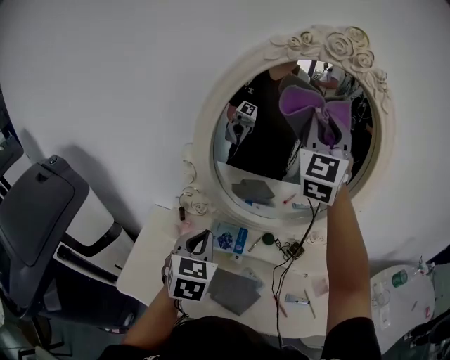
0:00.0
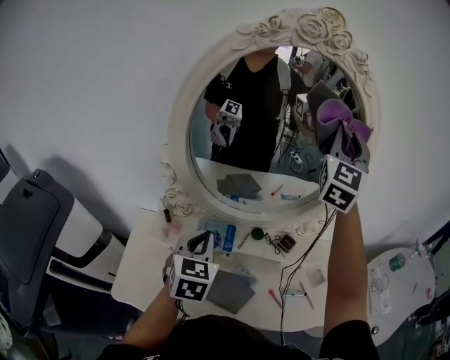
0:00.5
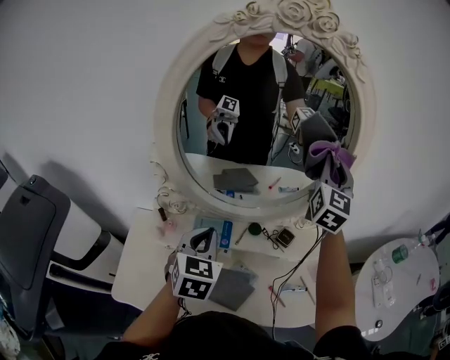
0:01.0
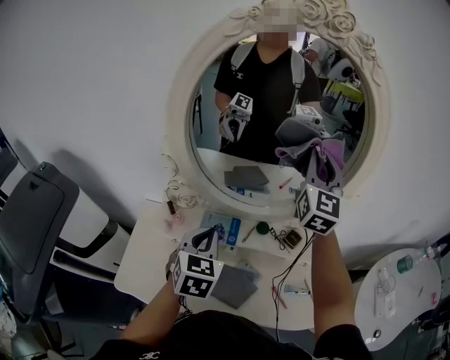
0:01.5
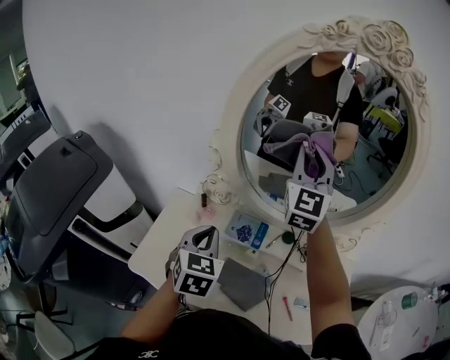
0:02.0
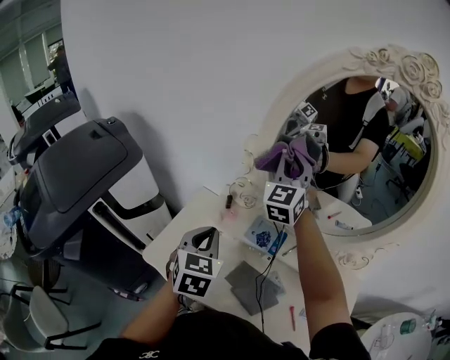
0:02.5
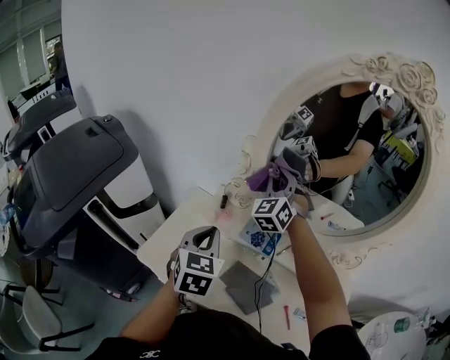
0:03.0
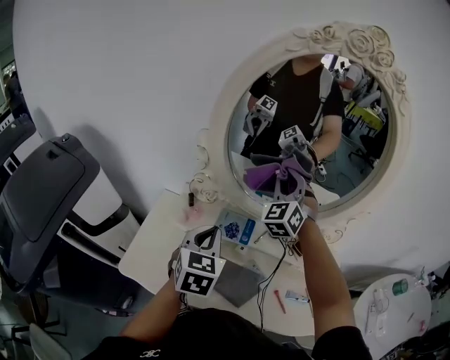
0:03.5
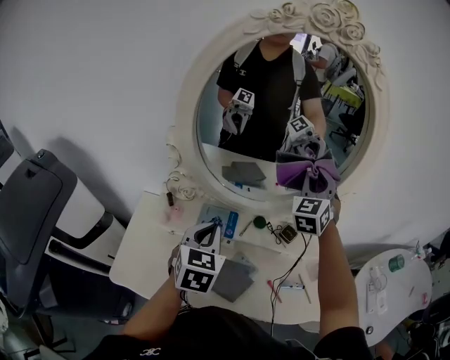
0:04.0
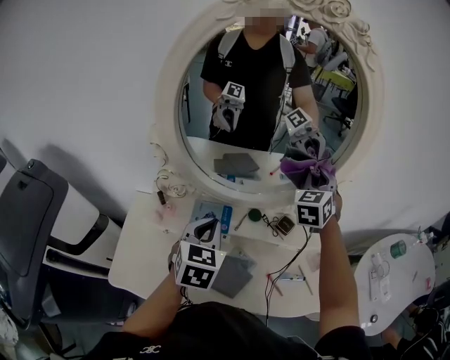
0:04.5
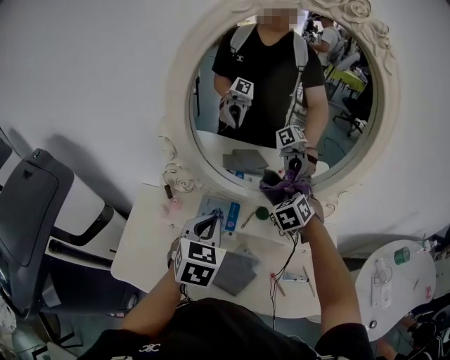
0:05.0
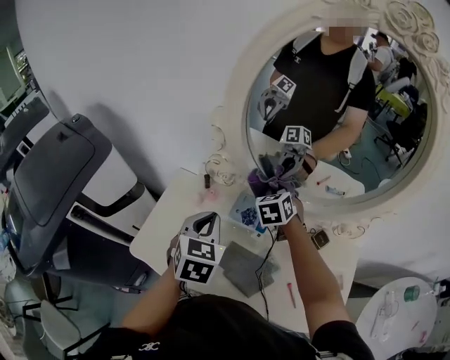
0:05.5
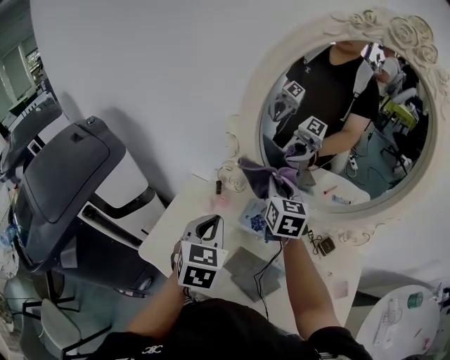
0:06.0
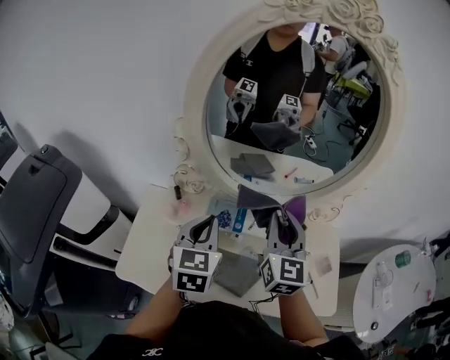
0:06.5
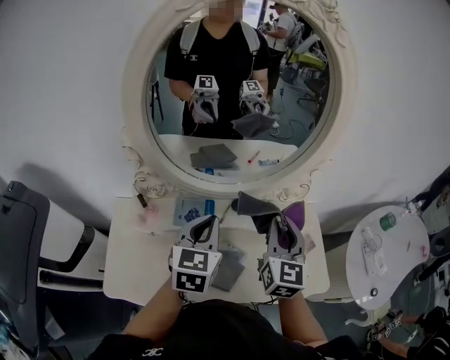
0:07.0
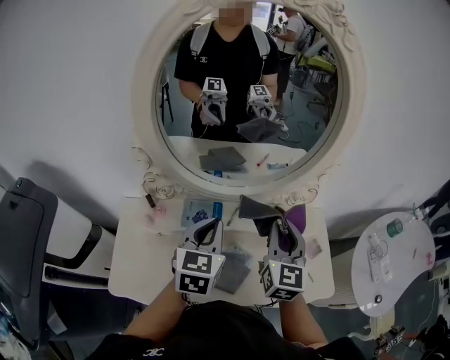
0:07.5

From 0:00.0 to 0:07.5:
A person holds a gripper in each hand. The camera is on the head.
From 0:00.0 to 0:02.0: The left gripper travels to the right and back again, approximately 5 cm each way. Meanwhile the right gripper shifts roughly 15 cm downward, reaches some 20 cm to the right, then returns, and swivels approximately 20 degrees.
From 0:02.0 to 0:04.0: The left gripper changes place by roughly 10 cm, while the right gripper moves roughly 20 cm, and turns by about 40 degrees.
From 0:04.0 to 0:05.5: The left gripper travels to the left by approximately 10 cm. Meanwhile the right gripper is displaced to the left and downward by roughly 30 cm, and tilts its fingers some 30 degrees downward.
From 0:05.5 to 0:07.5: The right gripper moves approximately 30 cm, and angles its fingers upward, by roughly 40 degrees. The left gripper moves some 15 cm, and changes its angle by about 30 degrees.

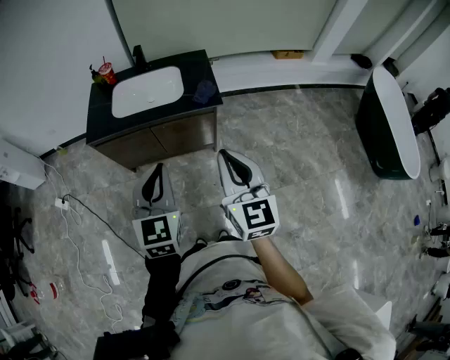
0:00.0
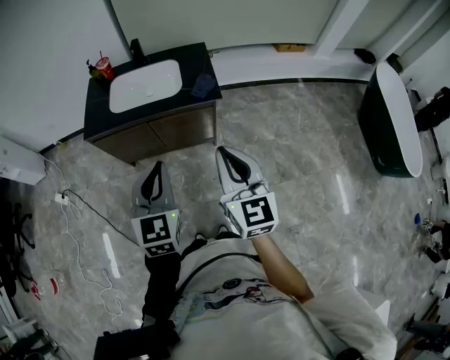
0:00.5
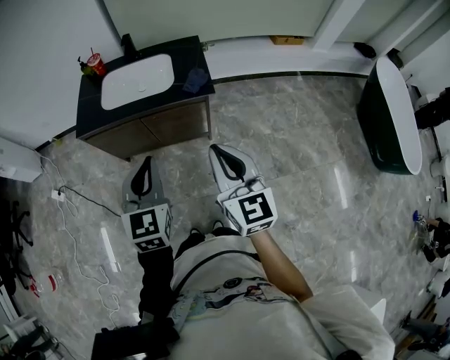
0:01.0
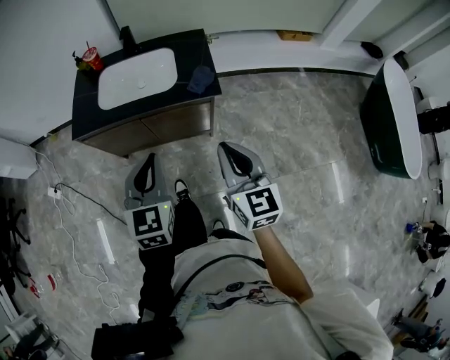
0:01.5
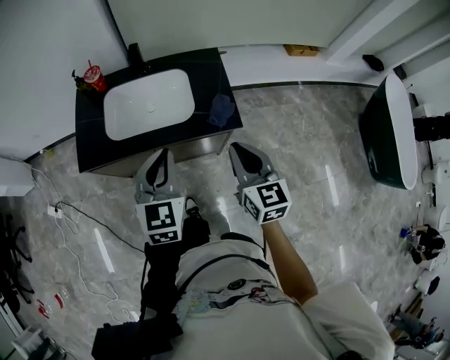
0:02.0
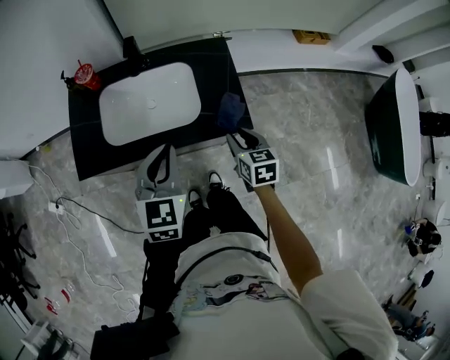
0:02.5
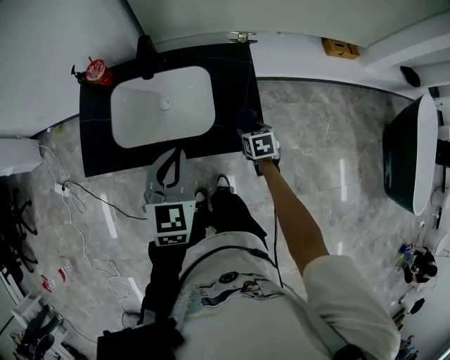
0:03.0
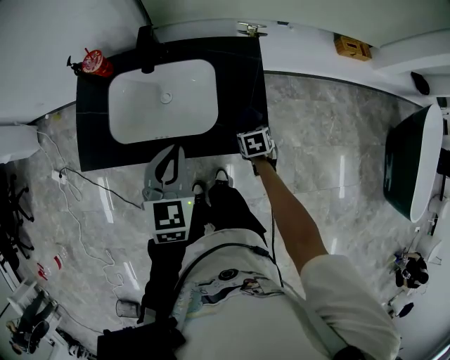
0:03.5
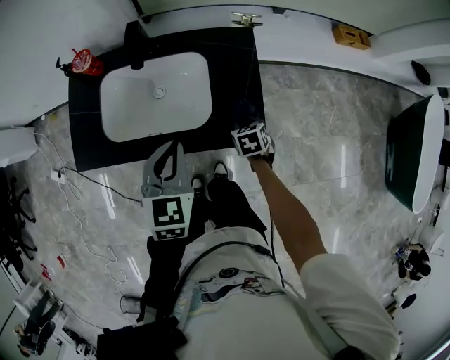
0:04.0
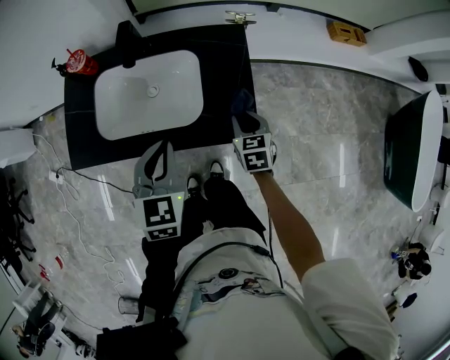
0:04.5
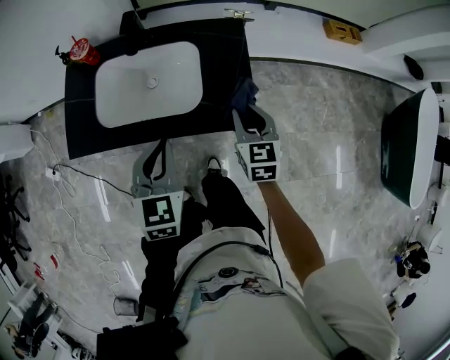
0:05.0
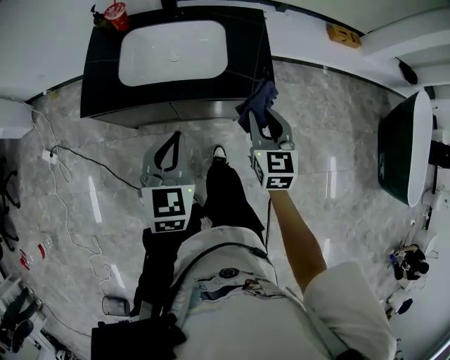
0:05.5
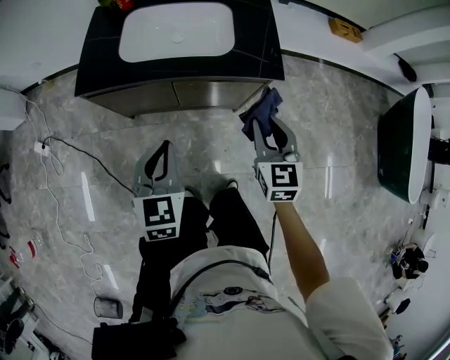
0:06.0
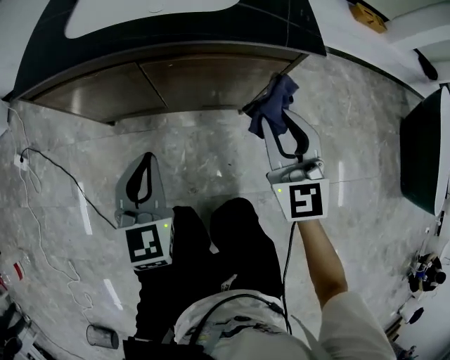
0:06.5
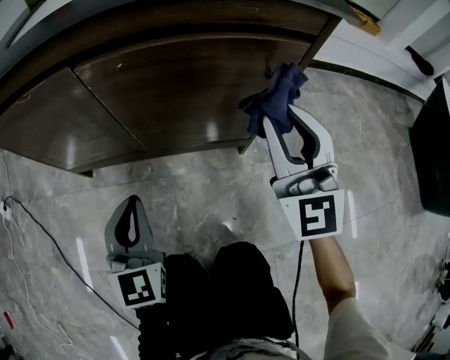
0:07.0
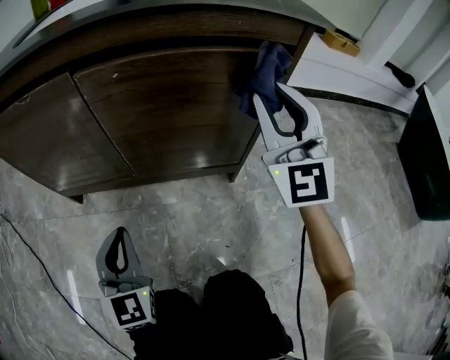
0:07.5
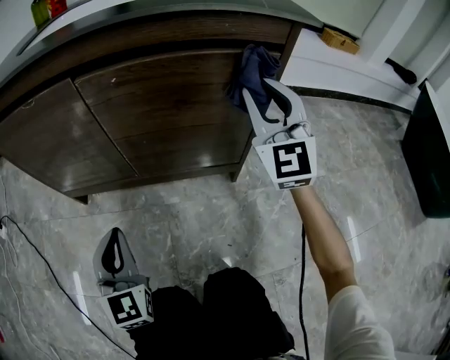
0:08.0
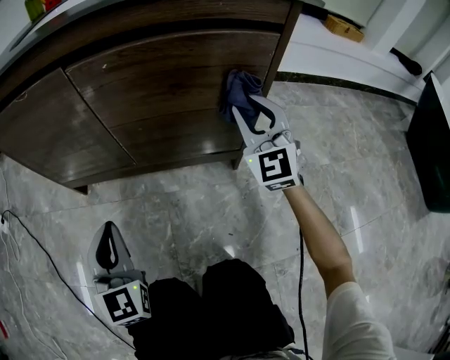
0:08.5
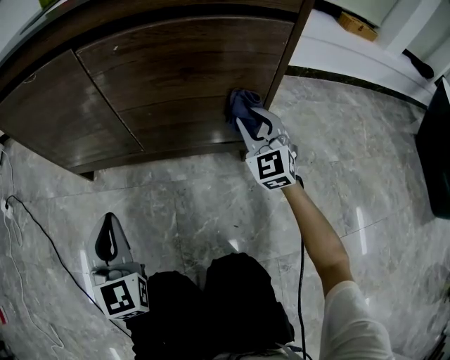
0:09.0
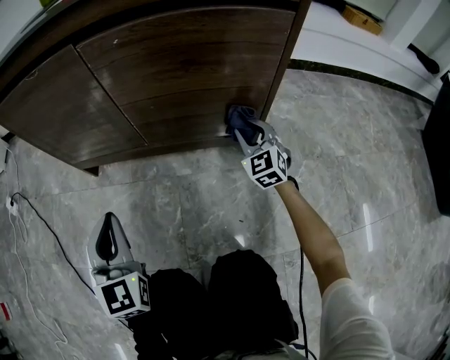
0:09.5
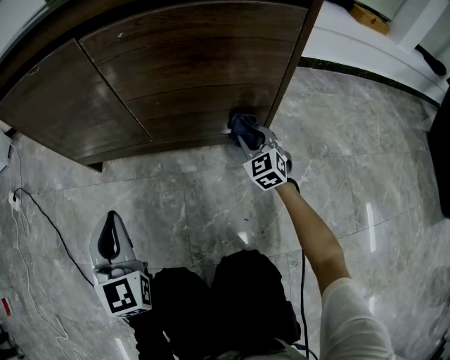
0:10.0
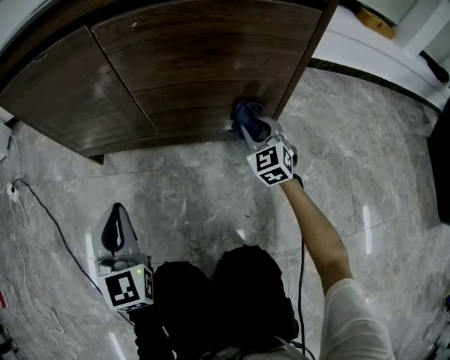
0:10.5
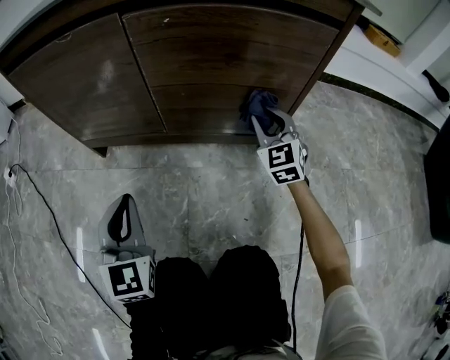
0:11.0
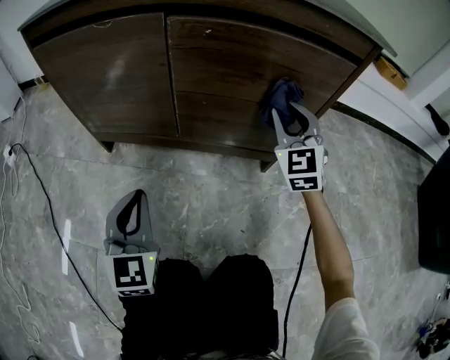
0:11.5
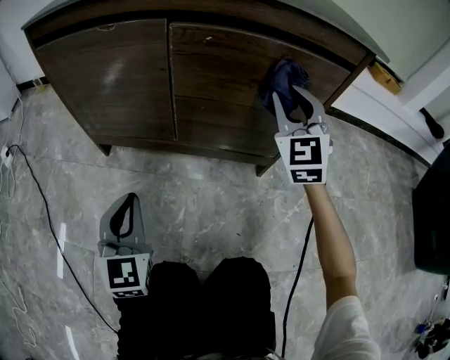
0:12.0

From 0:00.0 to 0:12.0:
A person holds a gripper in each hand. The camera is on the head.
From 0:00.0 to 0:02.0: Both grippers move forward, roughly 25 cm.
From 0:02.0 to 0:04.0: The left gripper is displaced forward and downward by about 20 cm. Meanwhile the right gripper heads downward and forward, covering roughly 40 cm, tips its fingers downward by some 50 degrees, and opens, then closes once more.
From 0:04.0 to 0:06.0: The right gripper goes roughly 30 cm backward and upward, and tilts its fingers about 40 degrees upward; the left gripper goes about 30 cm backward and to the left.
From 0:06.0 to 0:08.0: The right gripper heads downward and forward, covering about 35 cm, and tilts its fingers roughly 30 degrees upward; the left gripper is displaced downward by approximately 50 cm, and swivels about 20 degrees.
From 0:08.0 to 0:10.0: The right gripper goes approximately 35 cm downward, and points its fingers roughly 30 degrees further downward.
From 0:10.0 to 0:12.0: The right gripper goes approximately 30 cm upward, and swivels approximately 20 degrees.

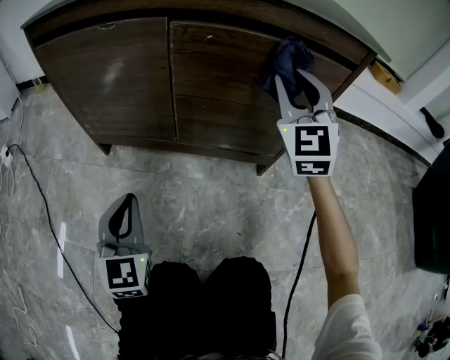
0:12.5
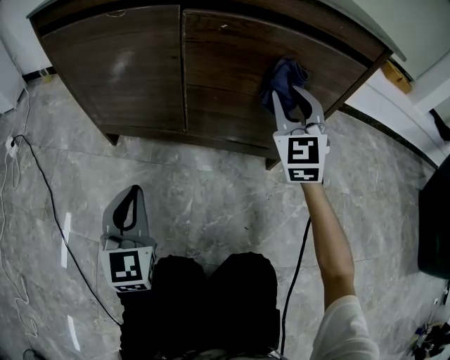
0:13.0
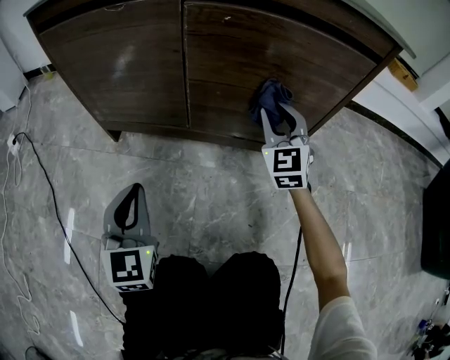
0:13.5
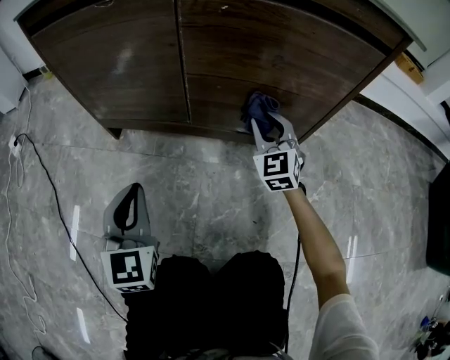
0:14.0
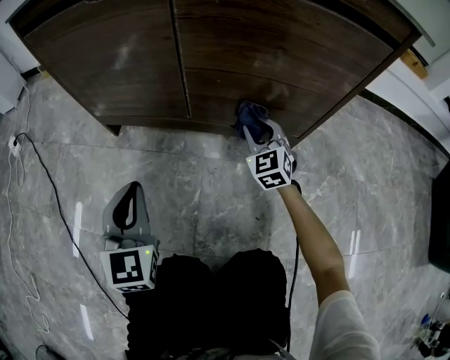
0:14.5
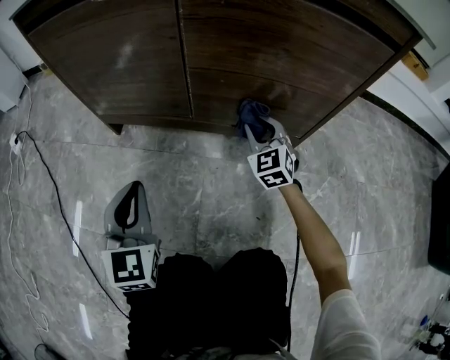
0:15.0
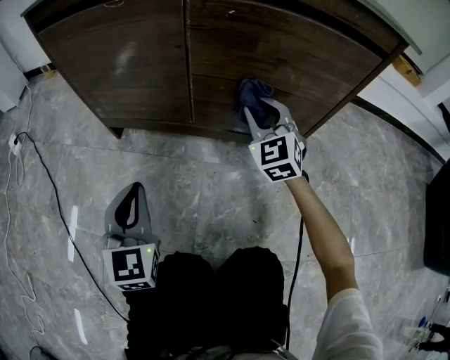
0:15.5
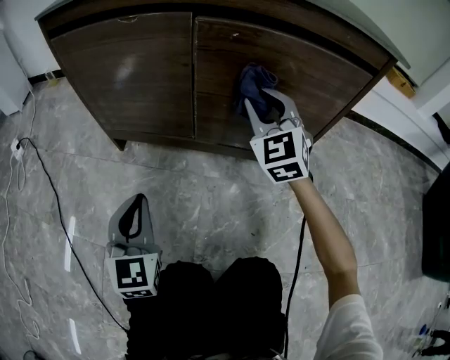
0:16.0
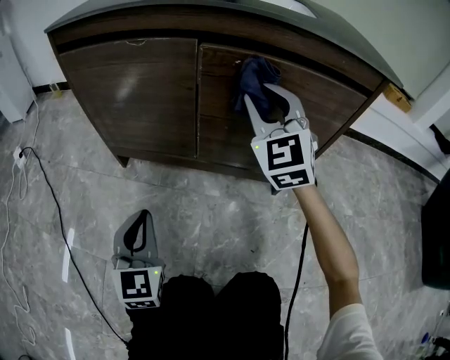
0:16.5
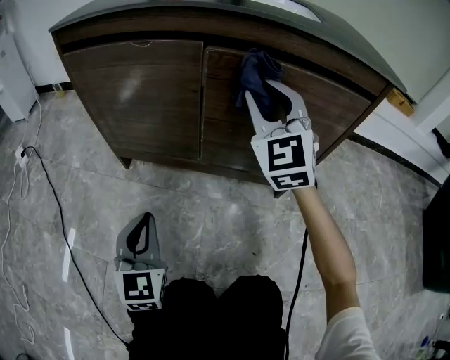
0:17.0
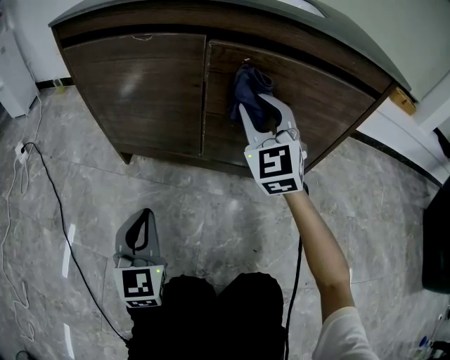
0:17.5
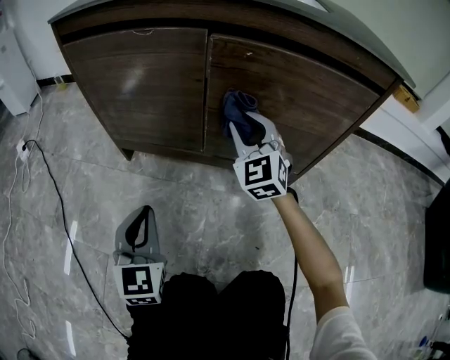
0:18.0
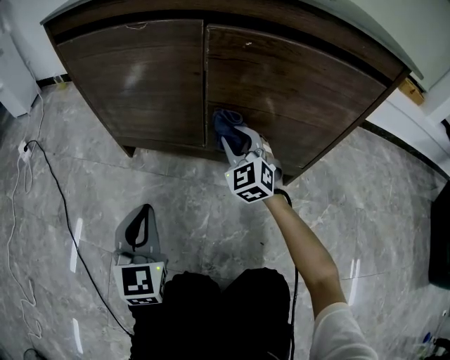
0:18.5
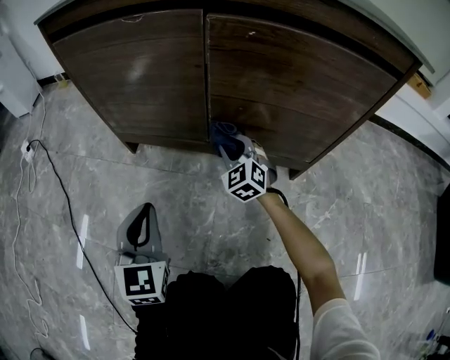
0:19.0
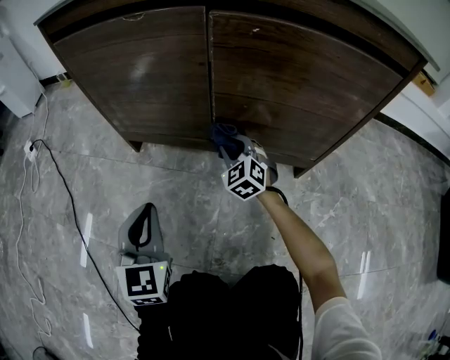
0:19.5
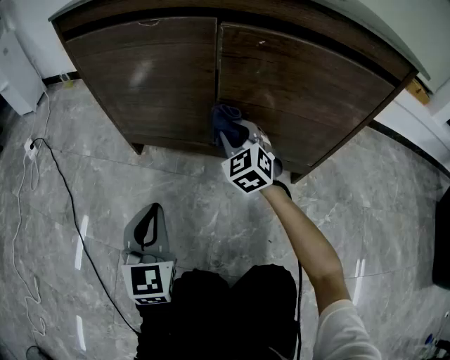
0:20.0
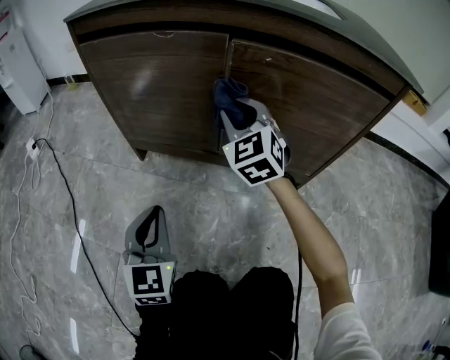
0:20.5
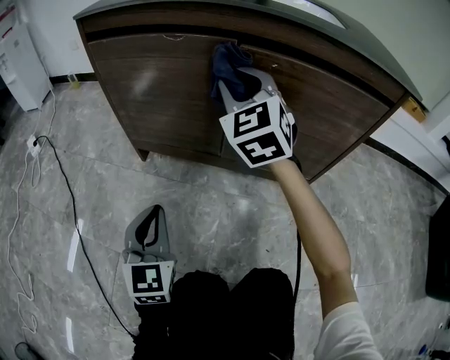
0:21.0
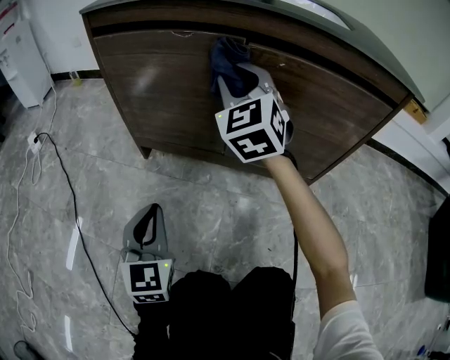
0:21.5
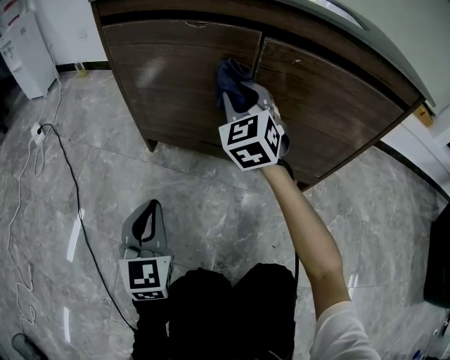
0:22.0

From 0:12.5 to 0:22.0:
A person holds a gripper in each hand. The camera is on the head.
From 0:12.5 to 0:14.5: The right gripper heads downward, covering approximately 30 cm, and rotates about 30 degrees.
From 0:14.5 to 0:16.5: The right gripper is displaced upward by about 30 cm, and rotates about 20 degrees.
From 0:16.5 to 0:18.0: The right gripper heads downward, covering about 15 cm.
From 0:18.0 to 0:20.0: The right gripper goes approximately 10 cm downward.
From 0:20.0 to 0:22.0: The right gripper heads upward and to the left, covering approximately 15 cm. The left gripper travels to the left by some 5 cm.
